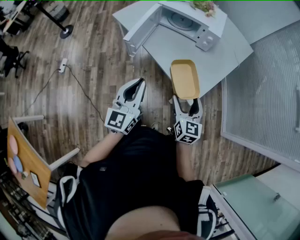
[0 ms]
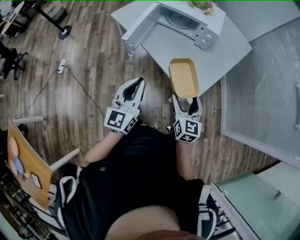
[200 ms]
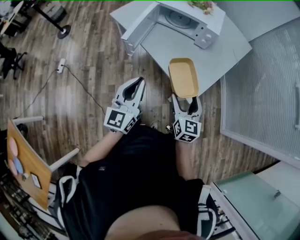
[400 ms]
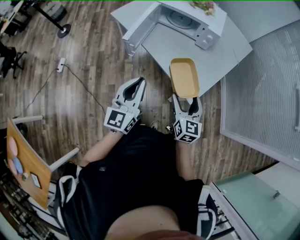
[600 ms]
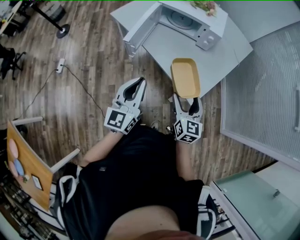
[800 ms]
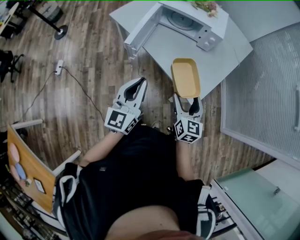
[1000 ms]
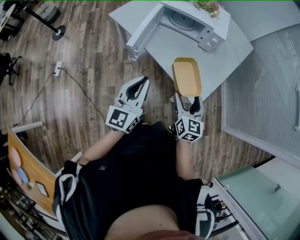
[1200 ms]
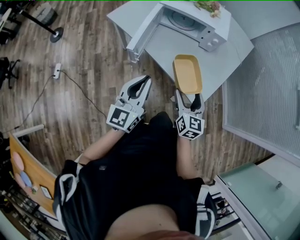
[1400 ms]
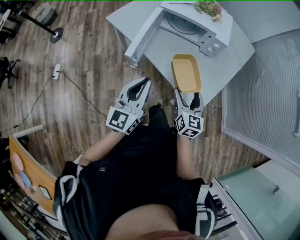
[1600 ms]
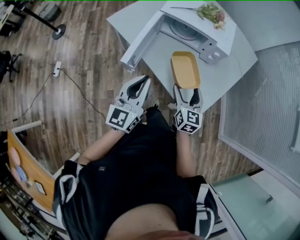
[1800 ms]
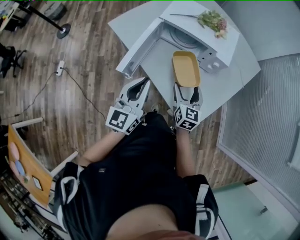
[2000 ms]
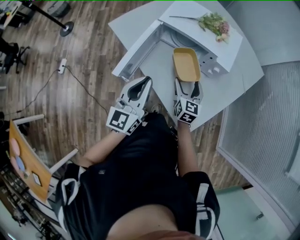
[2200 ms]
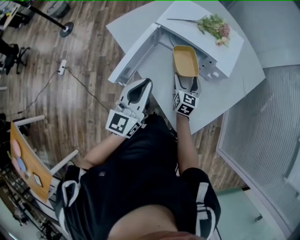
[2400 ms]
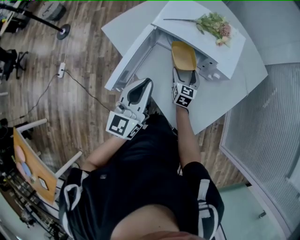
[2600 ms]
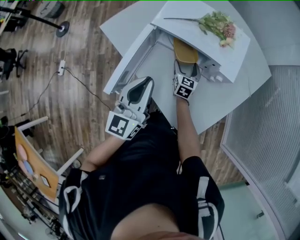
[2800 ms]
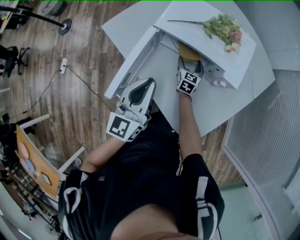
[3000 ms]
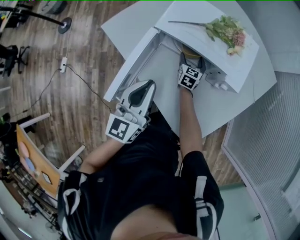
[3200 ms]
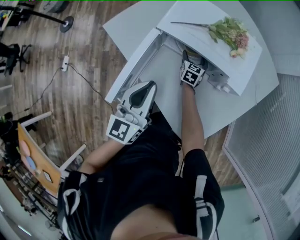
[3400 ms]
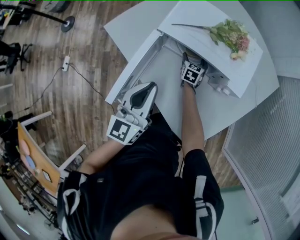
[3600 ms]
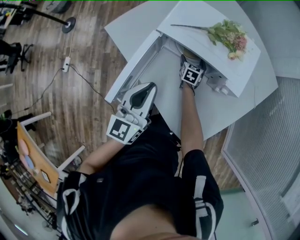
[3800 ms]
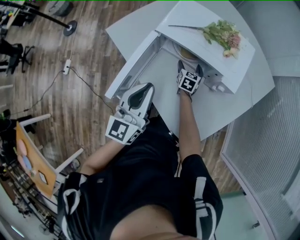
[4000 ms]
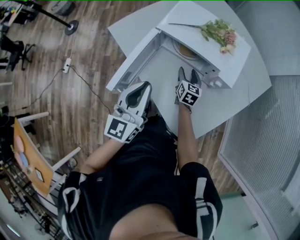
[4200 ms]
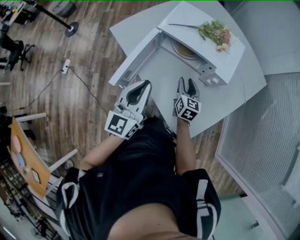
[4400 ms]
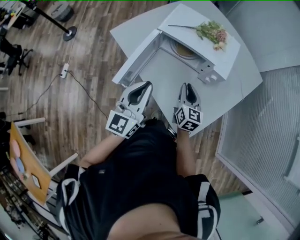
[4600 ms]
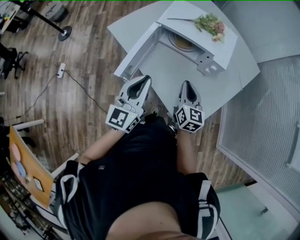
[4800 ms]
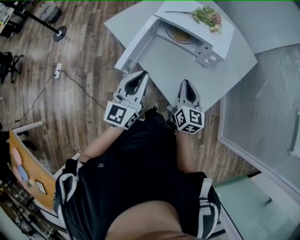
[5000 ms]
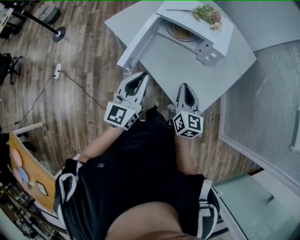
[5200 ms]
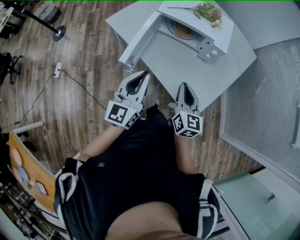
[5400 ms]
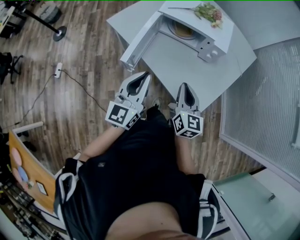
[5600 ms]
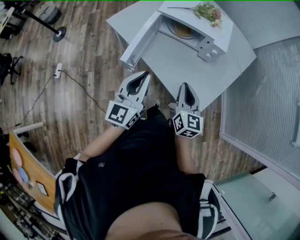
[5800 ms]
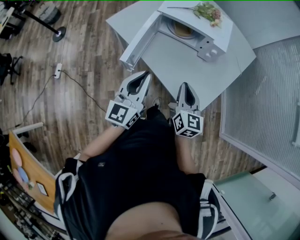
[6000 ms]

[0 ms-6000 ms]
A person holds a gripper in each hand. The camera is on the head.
0 ms to 1600 ms: The two grippers go roughly 15 cm forward and to the left.
1600 ms to 3000 ms: The right gripper heads forward and downward, covering some 50 cm, while the left gripper goes about 25 cm forward.
3000 ms to 4400 ms: The right gripper heads backward and upward, covering roughly 20 cm, and closes up. Meanwhile the left gripper shifts roughly 10 cm backward.
4400 ms to 6000 ms: The left gripper heads backward, covering roughly 15 cm; the right gripper goes about 25 cm backward and upward, and closes its fingers.

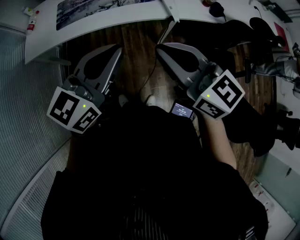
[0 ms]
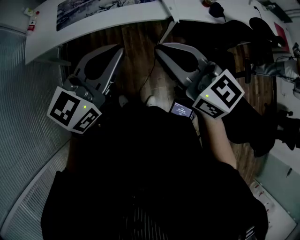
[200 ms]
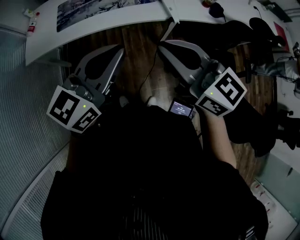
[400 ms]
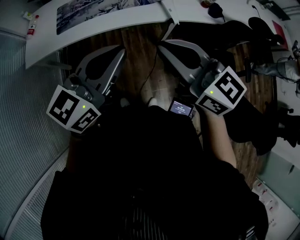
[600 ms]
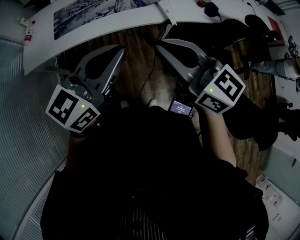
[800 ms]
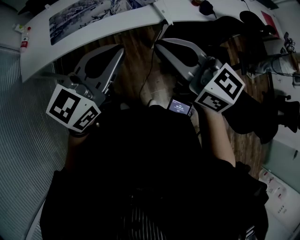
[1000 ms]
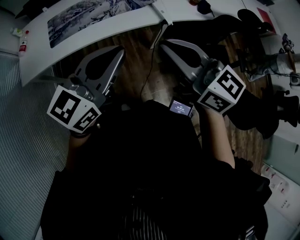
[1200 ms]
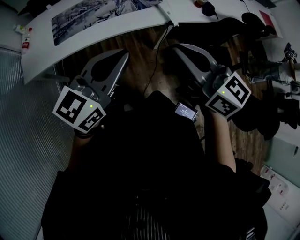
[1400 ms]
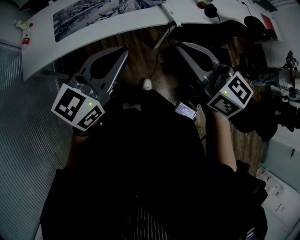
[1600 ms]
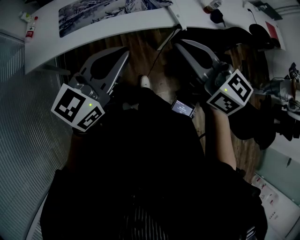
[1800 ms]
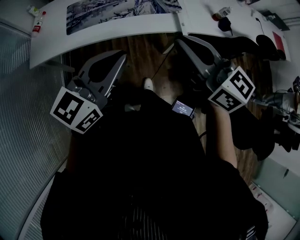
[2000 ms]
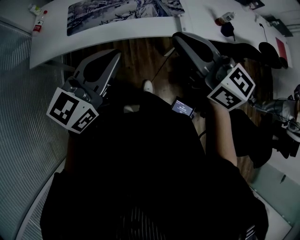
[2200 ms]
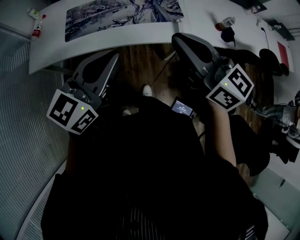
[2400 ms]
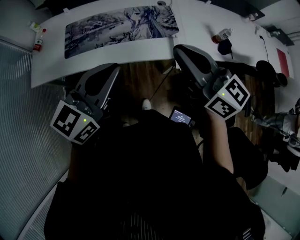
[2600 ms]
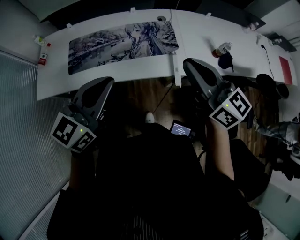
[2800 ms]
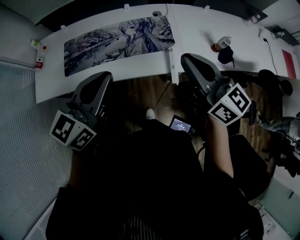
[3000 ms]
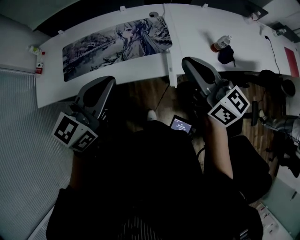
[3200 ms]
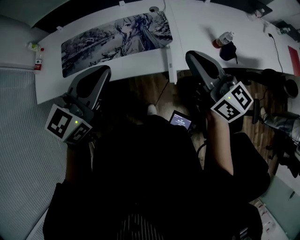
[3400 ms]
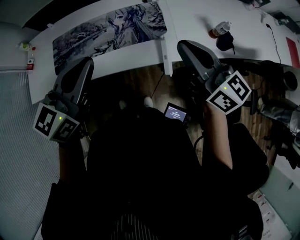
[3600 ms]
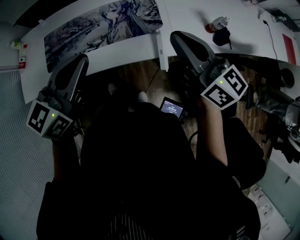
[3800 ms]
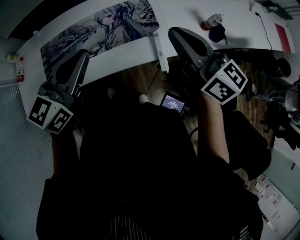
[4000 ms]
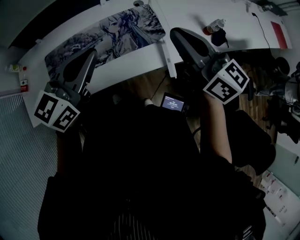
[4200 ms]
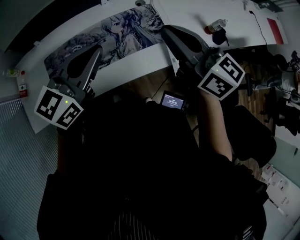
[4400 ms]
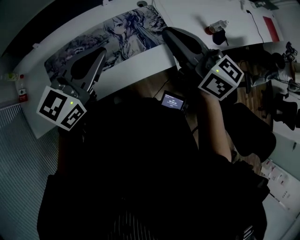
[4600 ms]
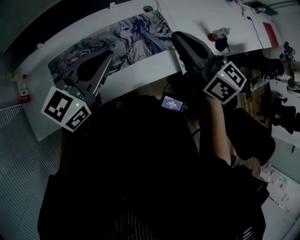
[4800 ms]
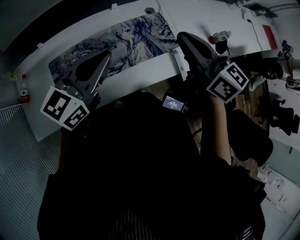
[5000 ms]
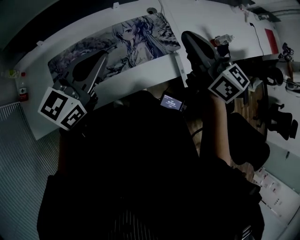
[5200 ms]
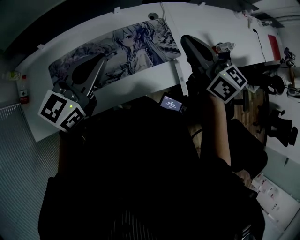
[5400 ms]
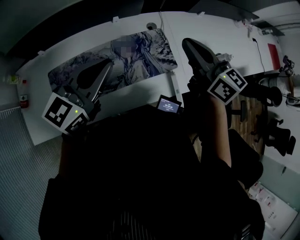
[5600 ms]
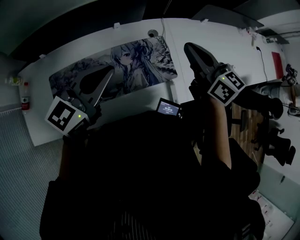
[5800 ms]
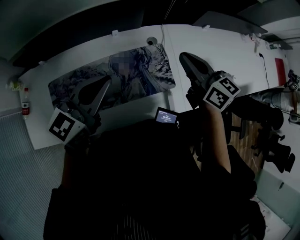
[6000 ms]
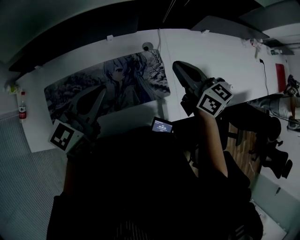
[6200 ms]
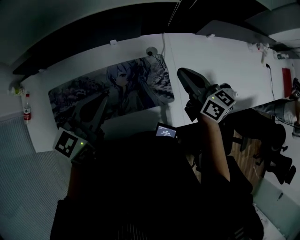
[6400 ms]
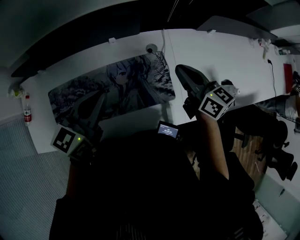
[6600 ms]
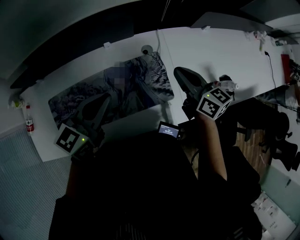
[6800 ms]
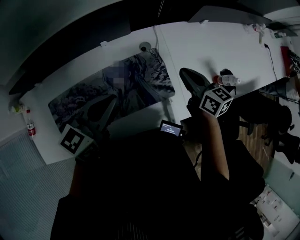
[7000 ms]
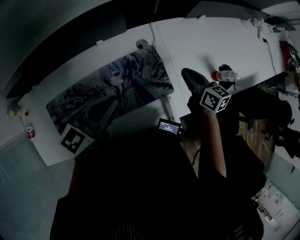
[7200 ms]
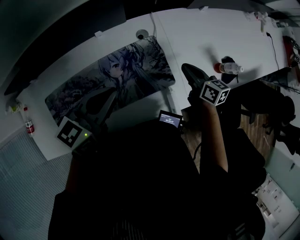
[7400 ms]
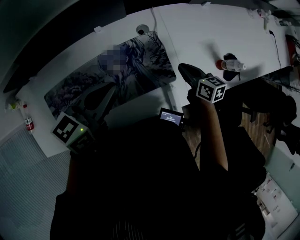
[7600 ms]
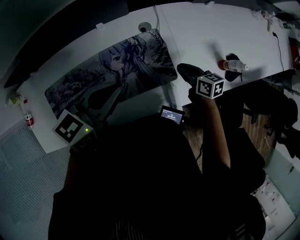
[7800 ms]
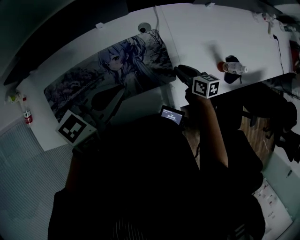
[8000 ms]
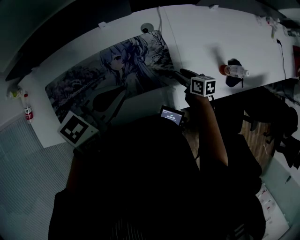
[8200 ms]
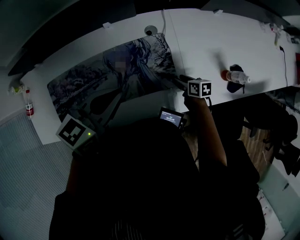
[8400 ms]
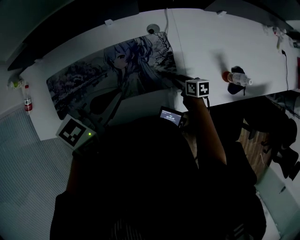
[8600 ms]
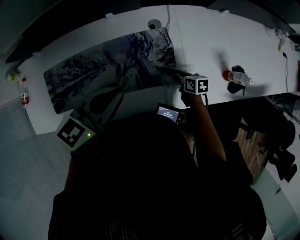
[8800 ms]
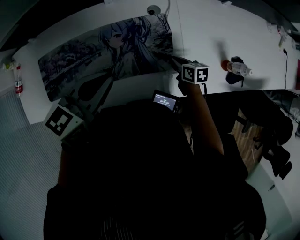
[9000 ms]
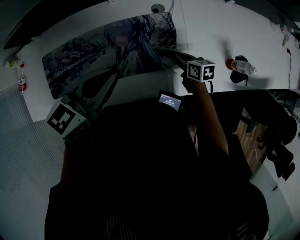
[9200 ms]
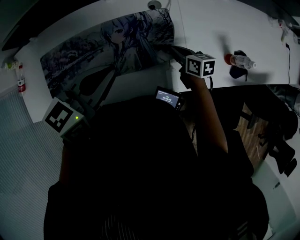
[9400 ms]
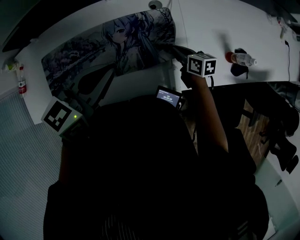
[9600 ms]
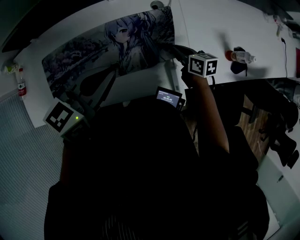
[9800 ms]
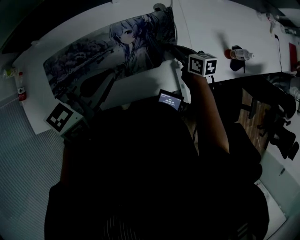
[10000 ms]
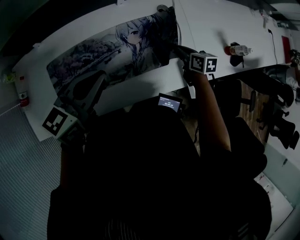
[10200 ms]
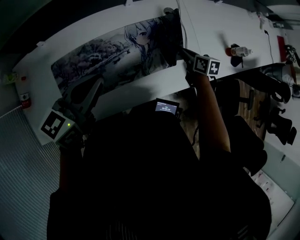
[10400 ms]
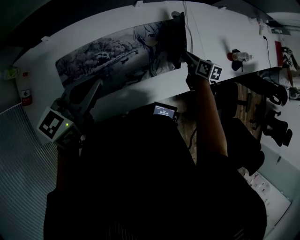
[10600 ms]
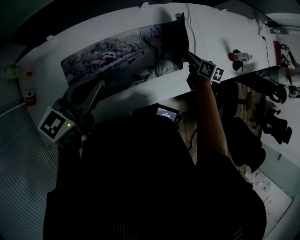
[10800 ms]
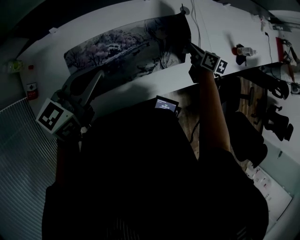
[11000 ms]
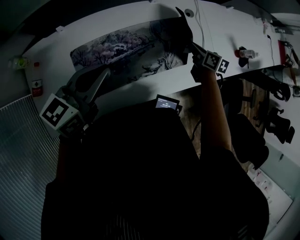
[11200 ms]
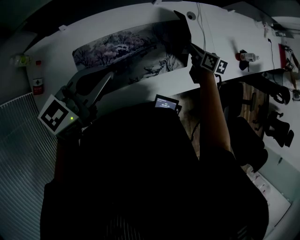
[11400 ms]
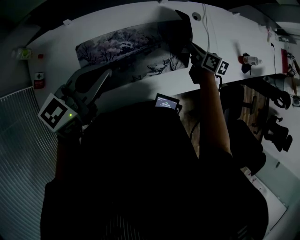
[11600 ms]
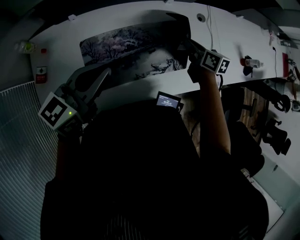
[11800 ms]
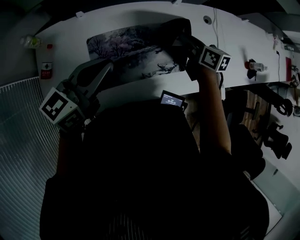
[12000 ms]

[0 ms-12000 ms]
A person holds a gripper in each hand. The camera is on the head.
0 ms to 1600 ms: The left gripper is displaced to the left by some 5 cm; the right gripper shifts by some 5 cm.
1600 ms to 3000 ms: The right gripper travels forward and to the right by about 30 cm. The left gripper is displaced forward by some 20 cm.
3000 ms to 4400 ms: The left gripper shifts roughly 15 cm forward. Meanwhile the right gripper shifts roughly 15 cm forward and to the left.
4400 ms to 6000 ms: The left gripper moves forward, approximately 15 cm, while the right gripper heads forward, covering roughly 20 cm.
6000 ms to 7600 ms: The right gripper shifts about 25 cm downward, and turns by roughly 30 degrees; the left gripper heads downward, to the right and forward, covering approximately 10 cm, and rotates approximately 20 degrees.
7600 ms to 9000 ms: The right gripper goes approximately 15 cm downward, and opens, then closes again, while the left gripper travels backward by approximately 5 cm.
9000 ms to 10400 ms: The right gripper is displaced to the left and upward by approximately 15 cm. Meanwhile the left gripper heads to the left, covering approximately 25 cm.
10400 ms to 12000 ms: The left gripper travels to the left by approximately 15 cm. Meanwhile the right gripper goes some 30 cm to the left and upward.

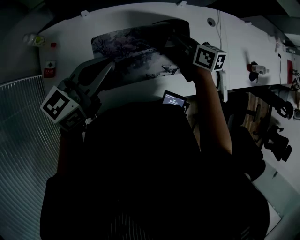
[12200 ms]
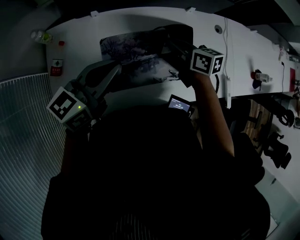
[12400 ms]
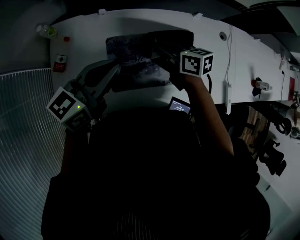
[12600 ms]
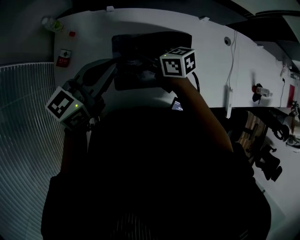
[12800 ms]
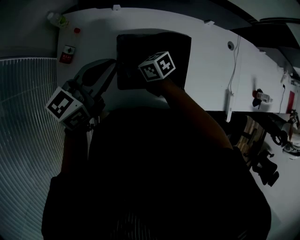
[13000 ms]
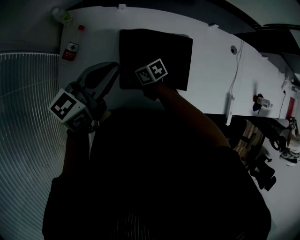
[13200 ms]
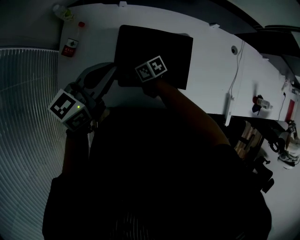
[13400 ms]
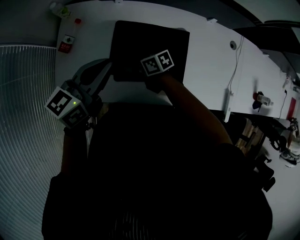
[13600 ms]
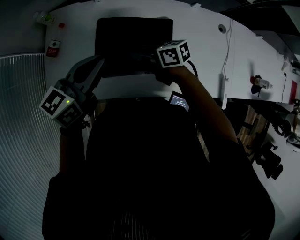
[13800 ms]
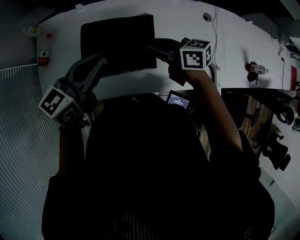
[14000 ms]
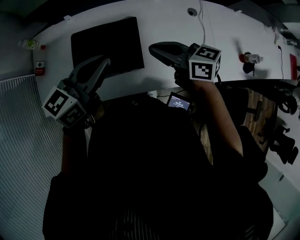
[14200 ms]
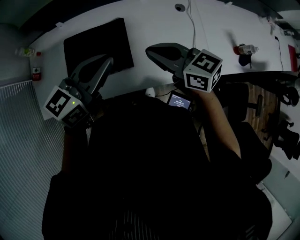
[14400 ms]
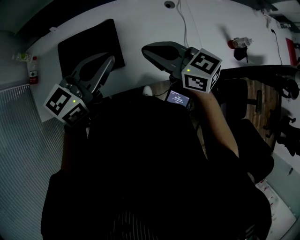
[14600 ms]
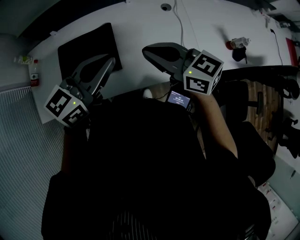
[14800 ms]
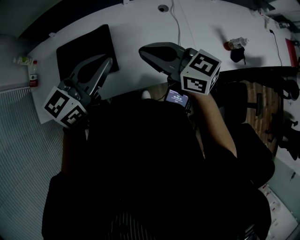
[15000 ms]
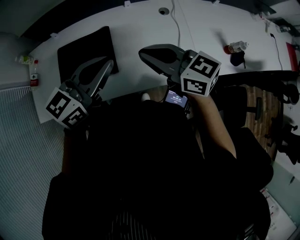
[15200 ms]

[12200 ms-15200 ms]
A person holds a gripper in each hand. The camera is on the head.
12200 ms to 13800 ms: The right gripper goes downward and returns, roughly 20 cm each way, turns by roughly 40 degrees, and opens up.
13800 ms to 15200 ms: The left gripper goes approximately 35 cm to the right; the right gripper heads to the right, upward and backward, covering approximately 40 cm, rotates some 40 degrees, and closes its fingers.

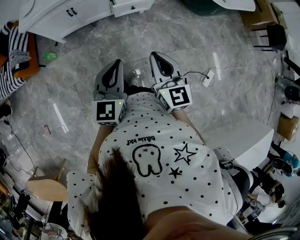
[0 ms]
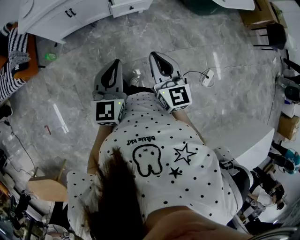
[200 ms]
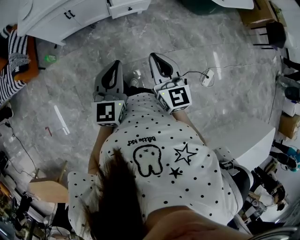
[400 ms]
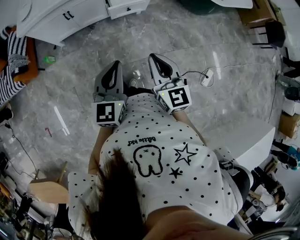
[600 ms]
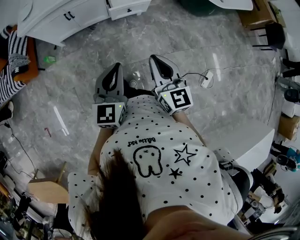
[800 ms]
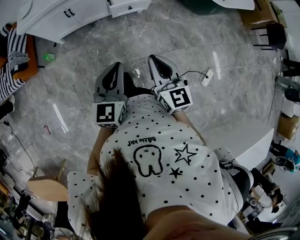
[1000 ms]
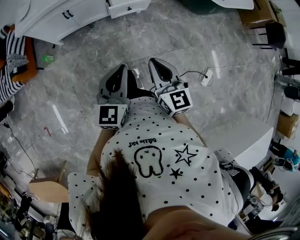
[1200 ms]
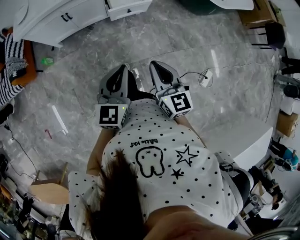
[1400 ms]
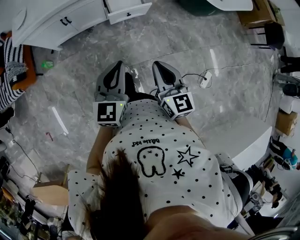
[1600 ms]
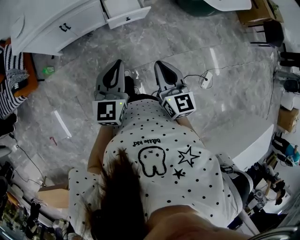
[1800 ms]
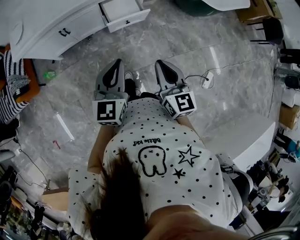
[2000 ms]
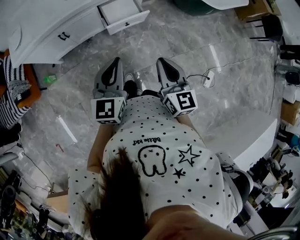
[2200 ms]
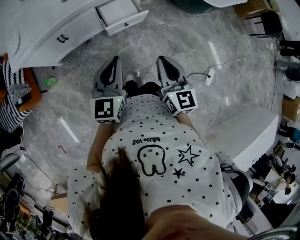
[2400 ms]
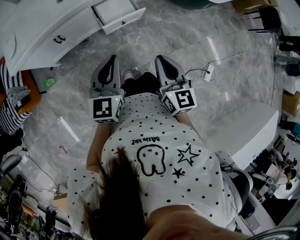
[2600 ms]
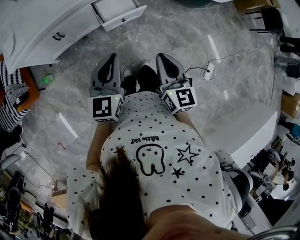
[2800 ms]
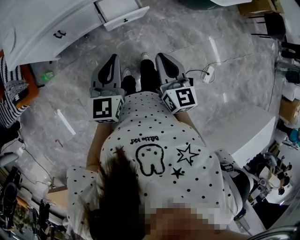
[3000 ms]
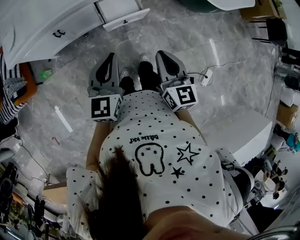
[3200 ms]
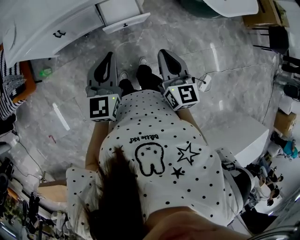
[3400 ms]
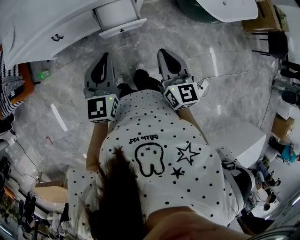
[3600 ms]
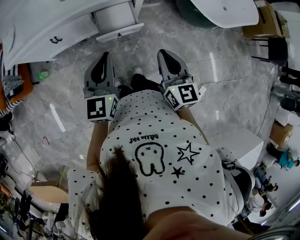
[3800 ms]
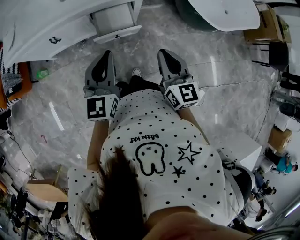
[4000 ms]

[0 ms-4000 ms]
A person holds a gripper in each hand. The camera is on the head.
0 ms to 1400 ms: The grippers stay close to where they were, moving slightly.
1400 ms to 2600 ms: The two grippers go about 15 cm forward.
2600 ms to 4000 ms: Both grippers travel together forward and to the right, approximately 20 cm.
